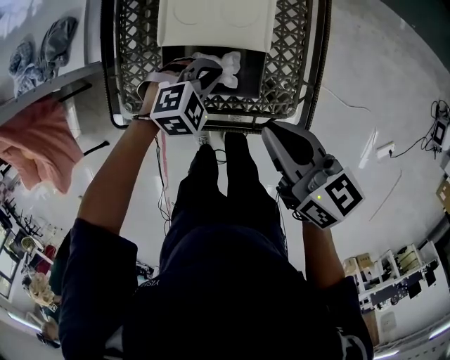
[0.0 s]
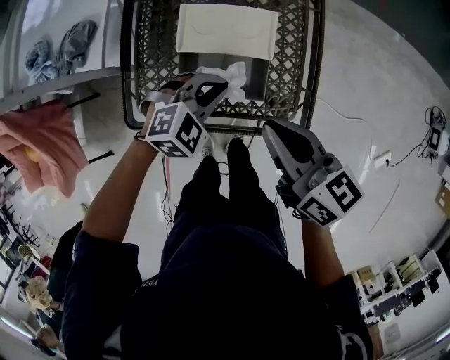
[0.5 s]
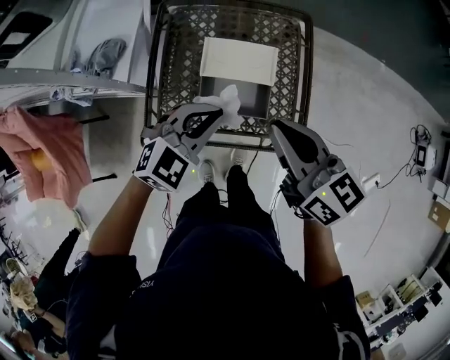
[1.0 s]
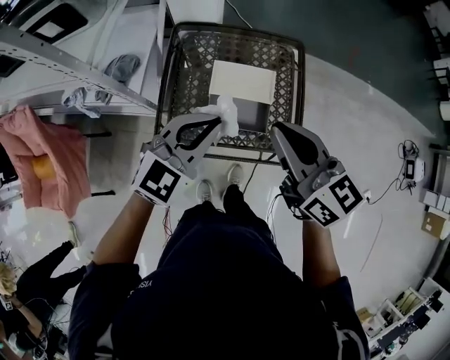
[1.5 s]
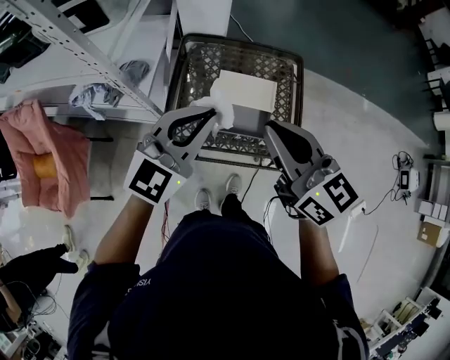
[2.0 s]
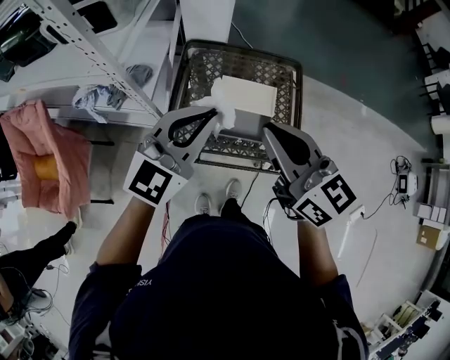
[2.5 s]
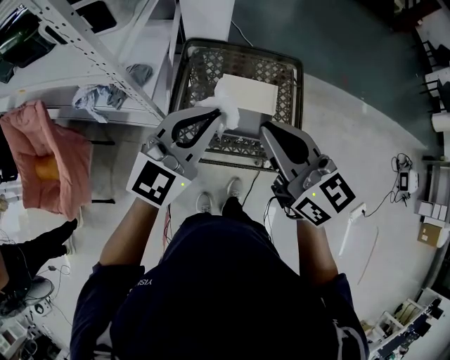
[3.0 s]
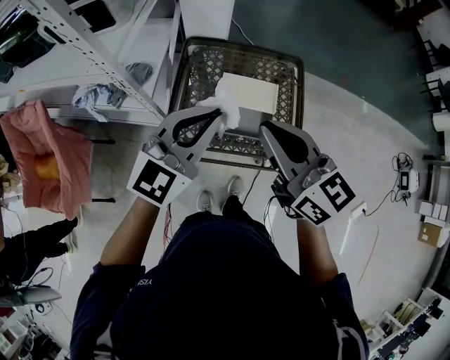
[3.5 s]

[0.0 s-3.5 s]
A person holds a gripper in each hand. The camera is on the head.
0.0 to 2.0 s: The left gripper is displaced upward by about 40 cm, and angles its fingers upward, by approximately 50 degrees, while the right gripper shifts approximately 30 cm upward and to the left, and turns by about 30 degrees.
2.0 to 3.5 s: The grippers stay close to where they were, moving slightly.

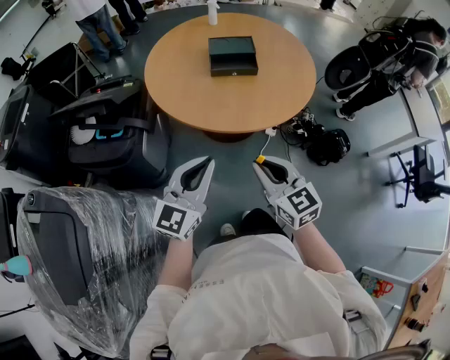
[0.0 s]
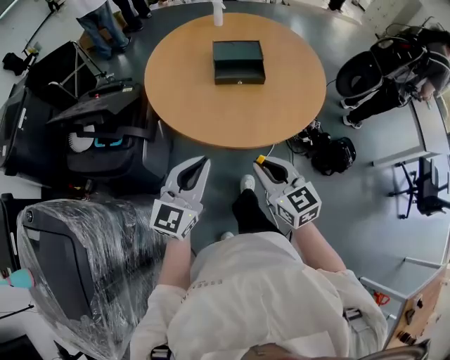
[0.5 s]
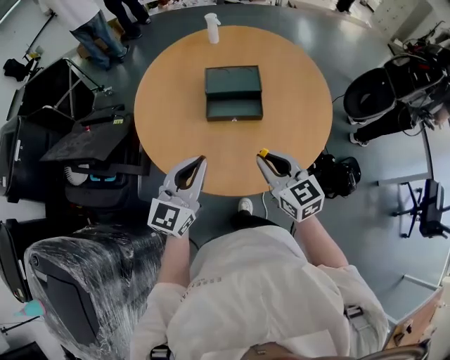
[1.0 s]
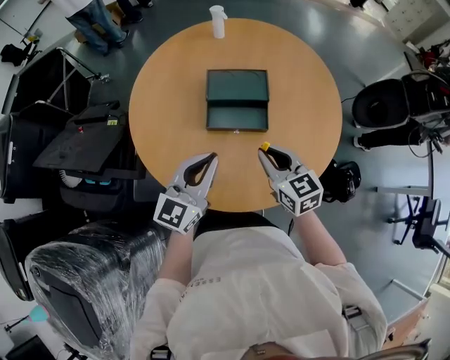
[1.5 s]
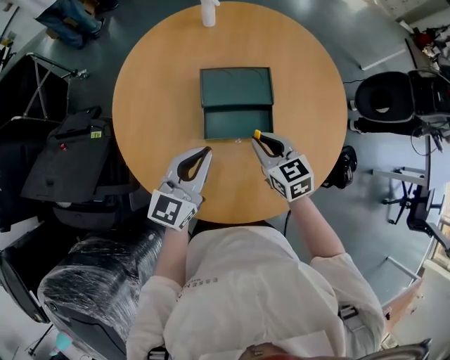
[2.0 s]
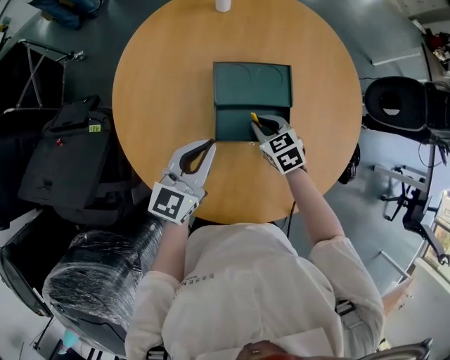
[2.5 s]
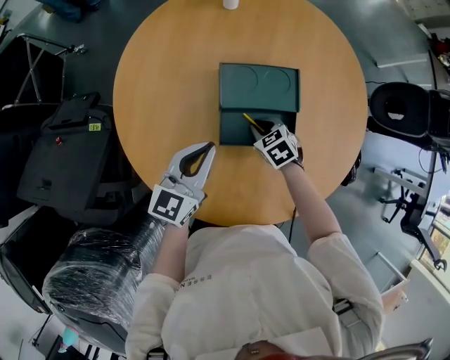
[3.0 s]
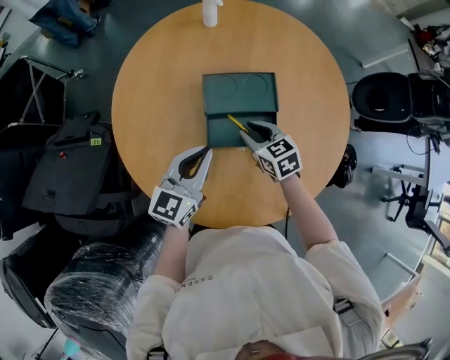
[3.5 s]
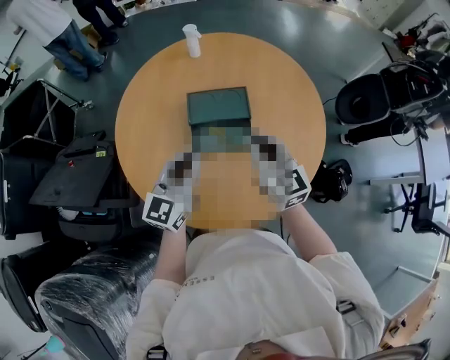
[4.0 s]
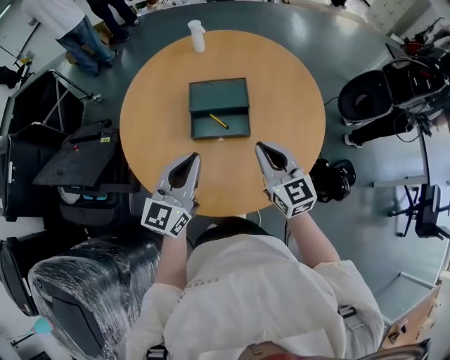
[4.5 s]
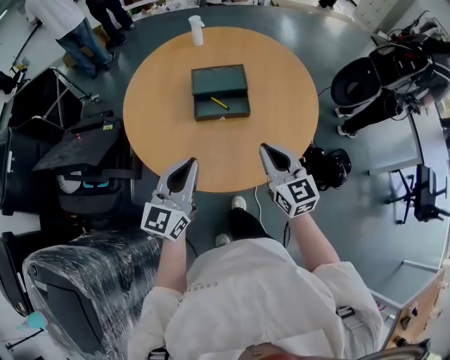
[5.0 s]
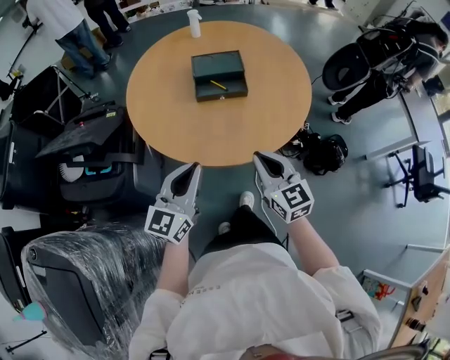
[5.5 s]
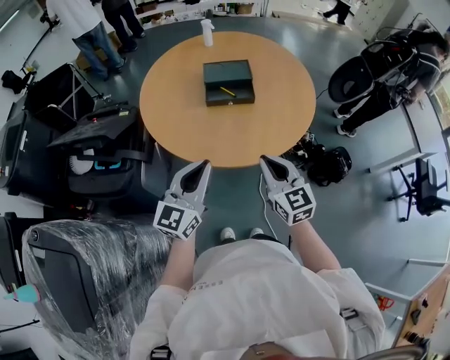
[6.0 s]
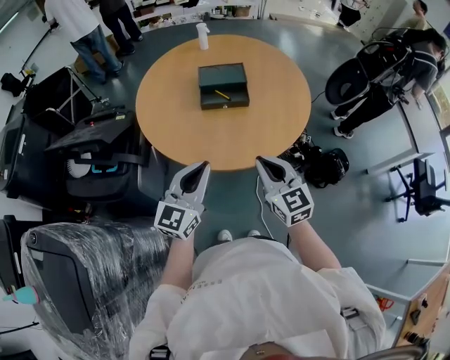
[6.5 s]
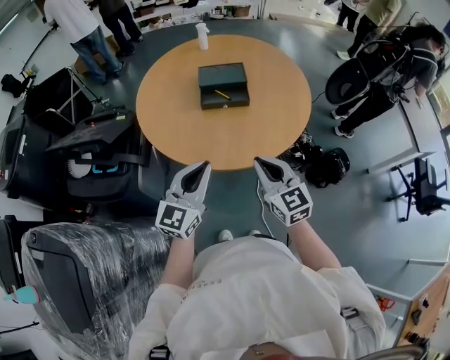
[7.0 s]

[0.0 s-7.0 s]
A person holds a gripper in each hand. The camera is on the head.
0.0 to 2.0 s: The two grippers travel together, forward, roughly 50 cm.
2.0 to 3.5 s: The right gripper shifts approximately 10 cm forward and downward.
3.5 to 5.0 s: Both grippers travel together backward and upward, some 30 cm. The right gripper turns by about 30 degrees, and closes.
5.0 to 7.0 s: The grippers both shift backward by approximately 15 cm.

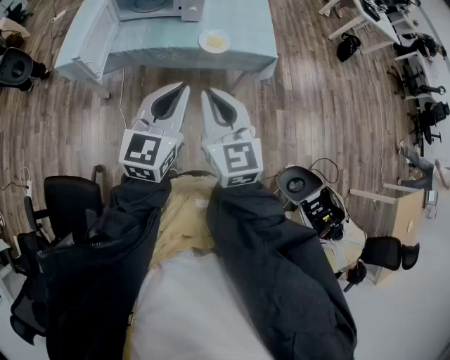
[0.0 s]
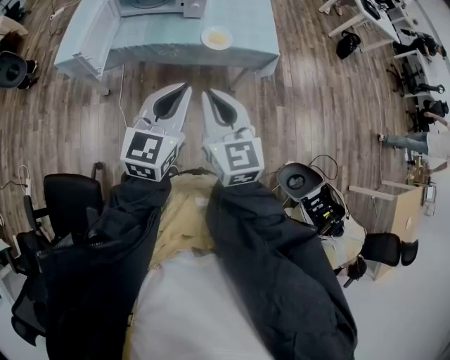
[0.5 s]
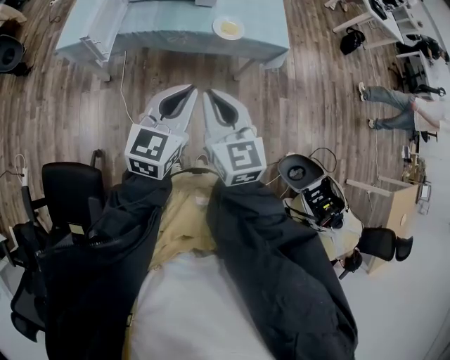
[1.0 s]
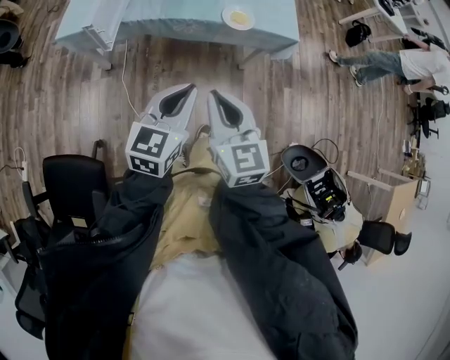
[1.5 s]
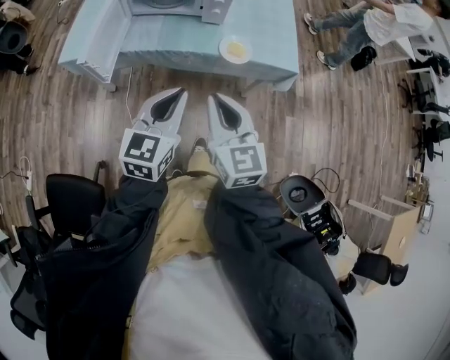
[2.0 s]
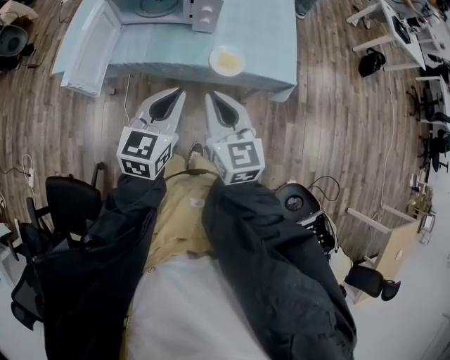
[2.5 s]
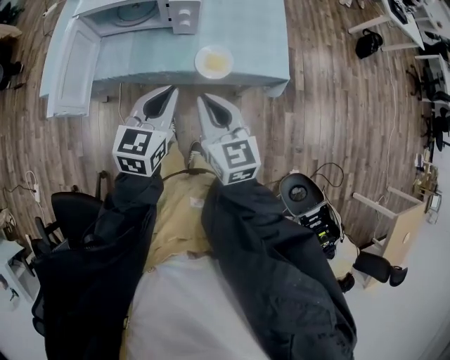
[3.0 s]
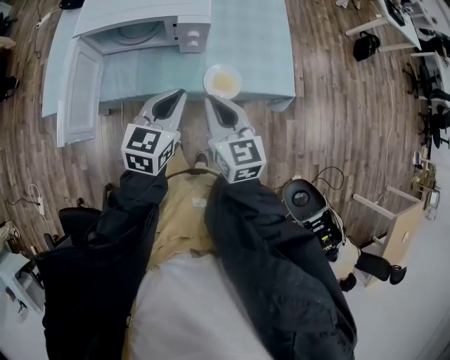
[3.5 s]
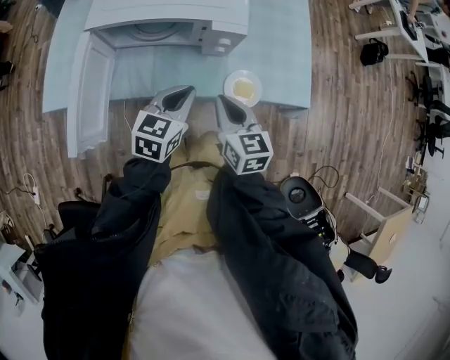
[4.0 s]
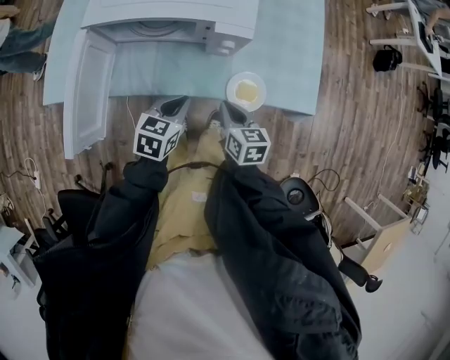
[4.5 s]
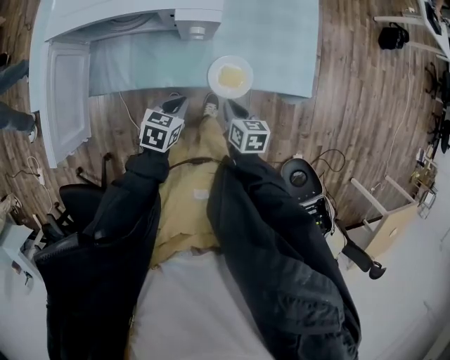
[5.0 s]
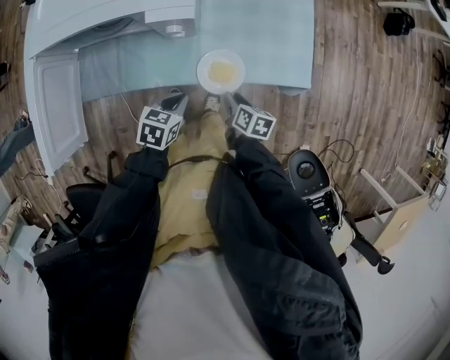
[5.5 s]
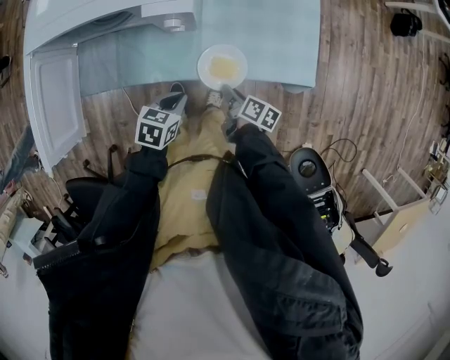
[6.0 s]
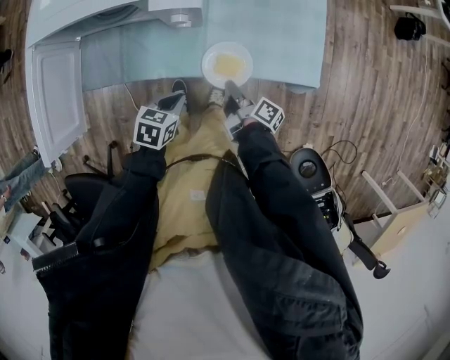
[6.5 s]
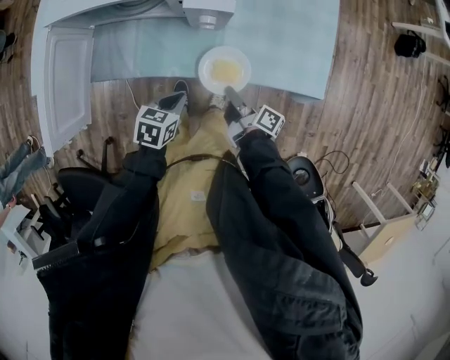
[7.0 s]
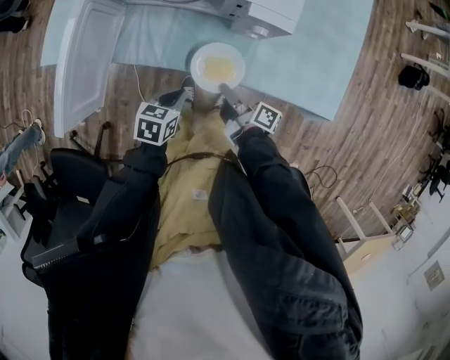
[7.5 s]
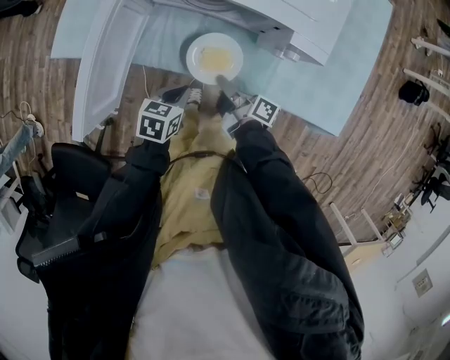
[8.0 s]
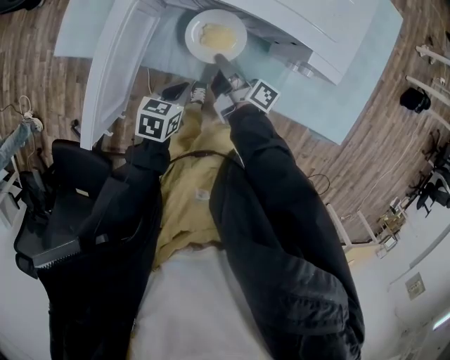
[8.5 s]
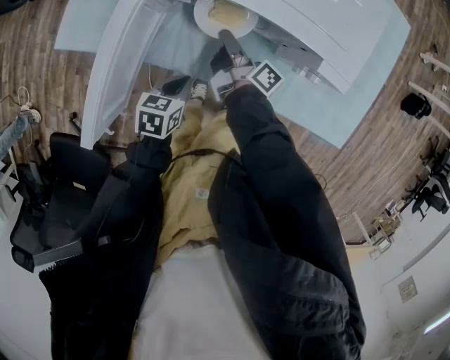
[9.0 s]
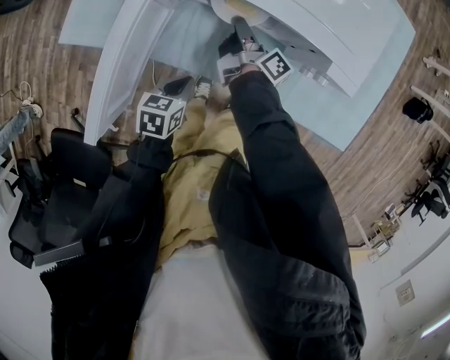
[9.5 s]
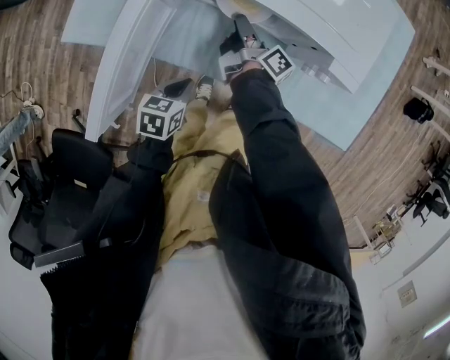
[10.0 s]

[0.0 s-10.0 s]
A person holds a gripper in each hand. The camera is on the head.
0.0 to 2.0 s: The left gripper is displaced forward, to the left and downward by about 10 cm, while the right gripper is displaced forward and downward by approximately 10 cm.
2.0 to 4.0 s: The left gripper heads forward, covering some 25 cm; the right gripper is displaced forward and downward by some 30 cm, and swivels roughly 20 degrees.
4.0 to 6.0 s: The two grippers go roughly 25 cm downward and to the right. The right gripper twists some 60 degrees clockwise, seen from behind, and opens; the left gripper swivels approximately 30 degrees.
6.0 to 8.0 s: Both grippers move to the left, roughly 20 cm. The right gripper changes its angle by about 30 degrees, and closes up.
8.0 to 10.0 s: The right gripper heads forward and to the left, covering about 20 cm. The left gripper moves to the left, some 5 cm.

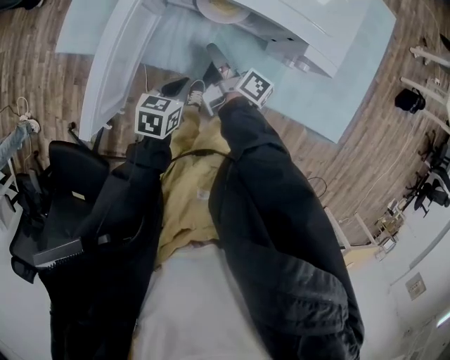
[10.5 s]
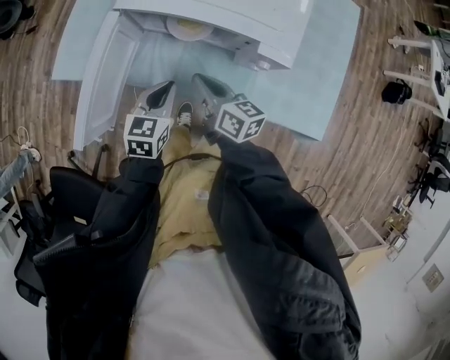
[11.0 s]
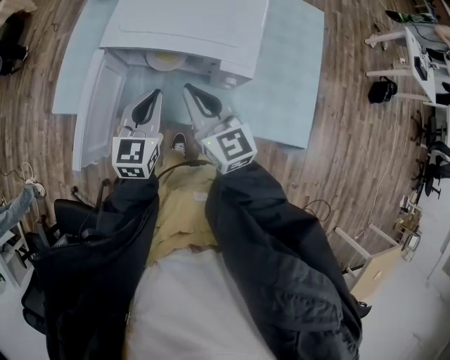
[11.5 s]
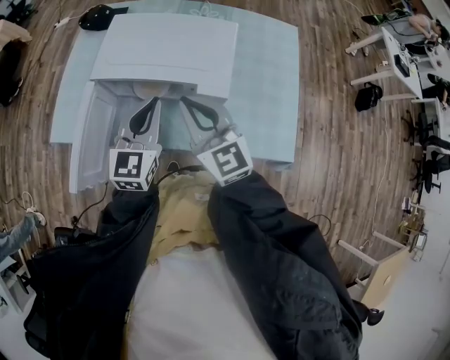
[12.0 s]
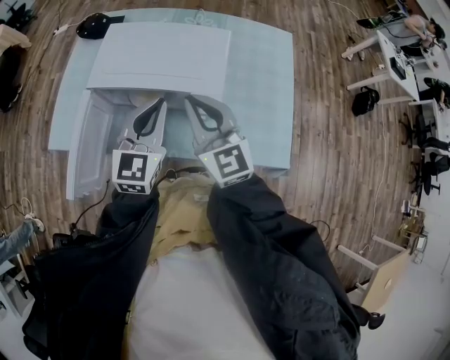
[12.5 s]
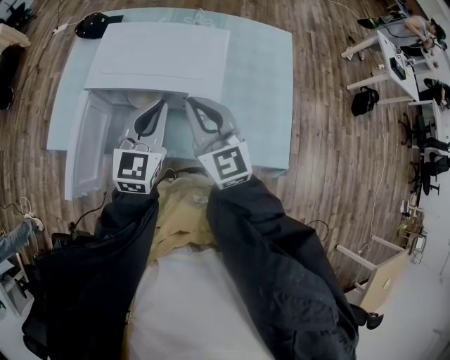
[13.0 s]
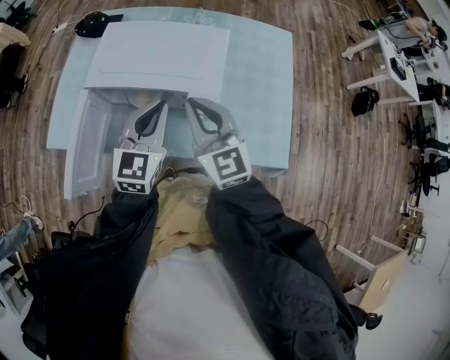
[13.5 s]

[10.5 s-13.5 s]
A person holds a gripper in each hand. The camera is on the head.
10.5 to 12.0 s: The right gripper is displaced upward by approximately 30 cm, and rotates around the line of its fingers by some 90 degrees, counterclockwise from behind; the left gripper travels upward and to the right by some 30 cm, and points its fingers approximately 40 degrees further upward.
12.0 to 13.5 s: The grippers stay close to where they were, moving slightly.

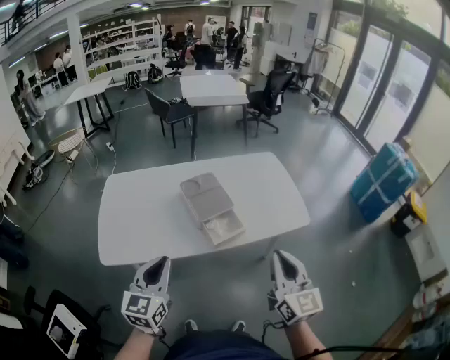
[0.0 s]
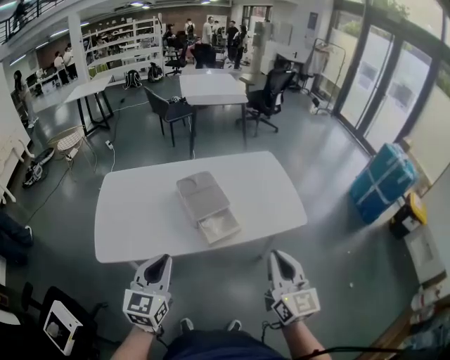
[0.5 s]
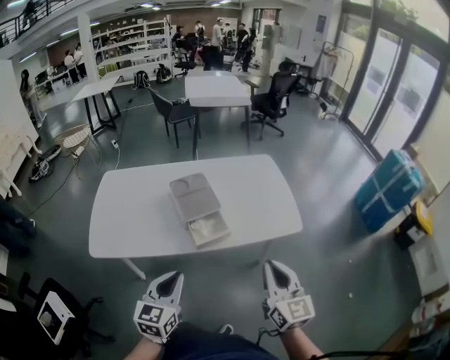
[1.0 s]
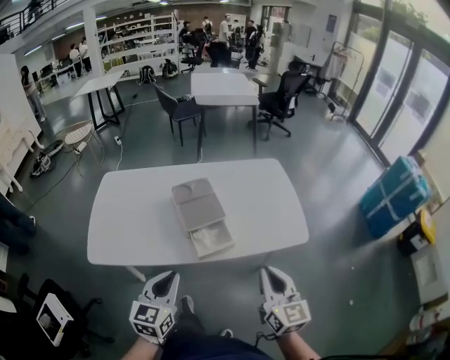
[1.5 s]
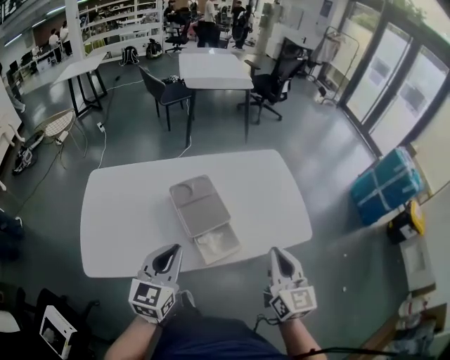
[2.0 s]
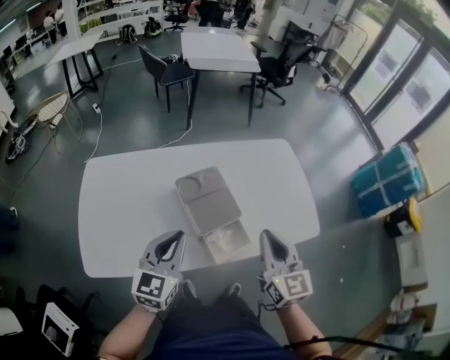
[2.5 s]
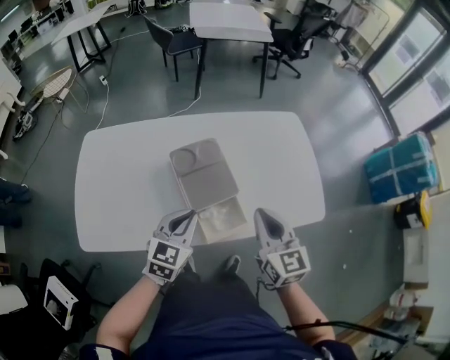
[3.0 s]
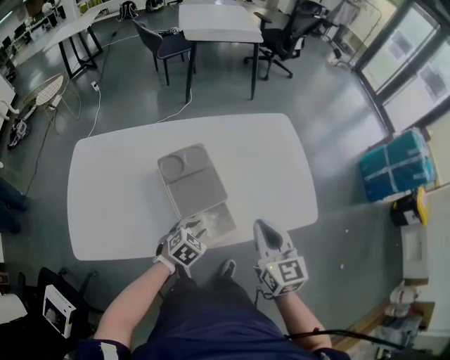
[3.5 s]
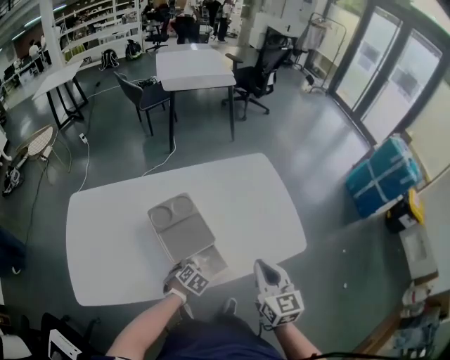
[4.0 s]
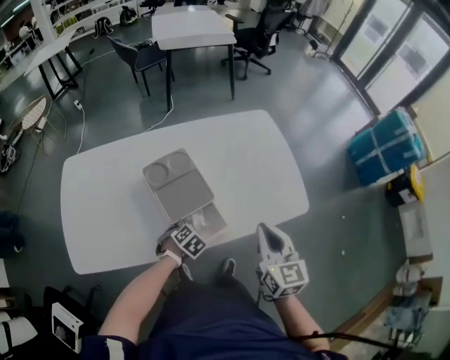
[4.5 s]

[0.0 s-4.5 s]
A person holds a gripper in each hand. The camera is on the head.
0.0 to 2.0 s: The two grippers go approximately 15 cm forward.
2.0 to 4.5 s: The right gripper is displaced downward and forward by roughly 10 cm, and travels to the left and back again, approximately 10 cm each way. Meanwhile the left gripper moves downward, roughly 30 cm, tips its fingers downward by roughly 60 degrees, and opens, then closes again.
